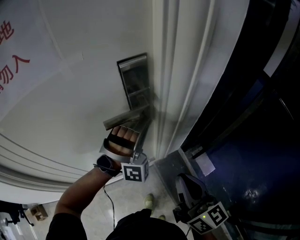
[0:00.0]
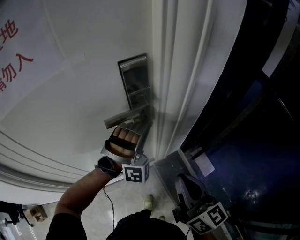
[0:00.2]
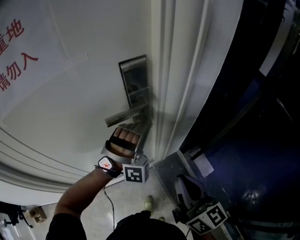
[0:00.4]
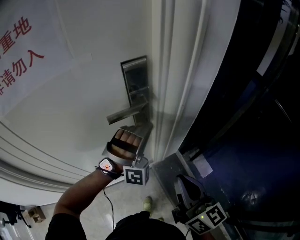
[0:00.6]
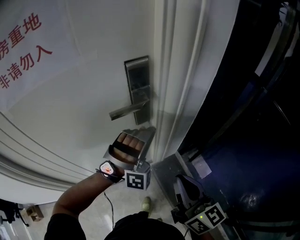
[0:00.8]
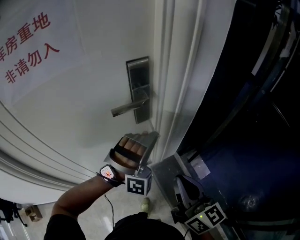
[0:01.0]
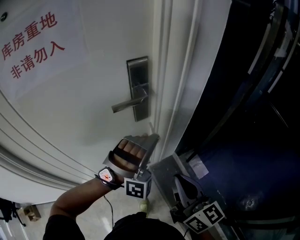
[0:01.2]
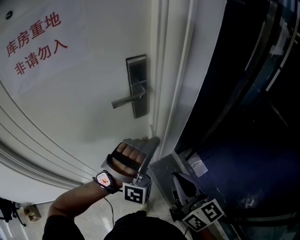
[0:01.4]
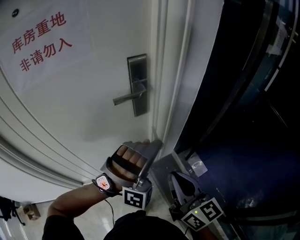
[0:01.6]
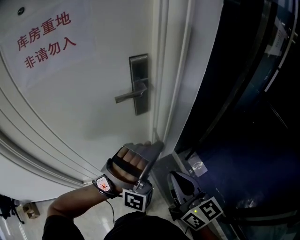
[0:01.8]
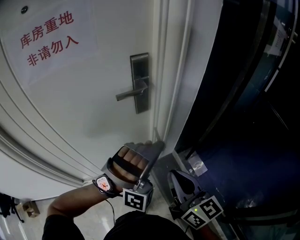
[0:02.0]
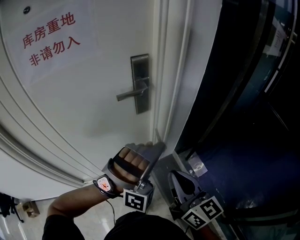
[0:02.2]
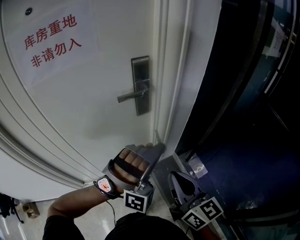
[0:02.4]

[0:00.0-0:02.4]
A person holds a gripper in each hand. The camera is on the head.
0:00.0 to 0:01.2: The left gripper shifts roughly 15 cm backward, while the right gripper moves backward, some 10 cm.
0:01.2 to 0:02.4: The right gripper moves backward, roughly 5 cm. Meanwhile the left gripper heads backward, covering approximately 10 cm.

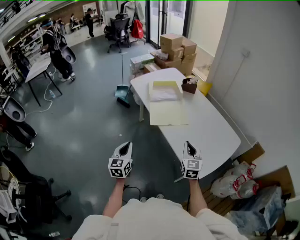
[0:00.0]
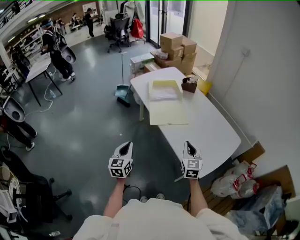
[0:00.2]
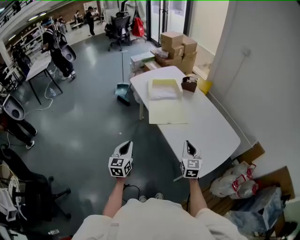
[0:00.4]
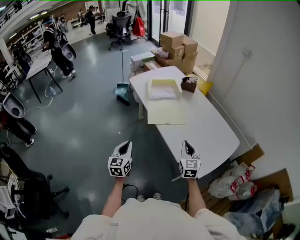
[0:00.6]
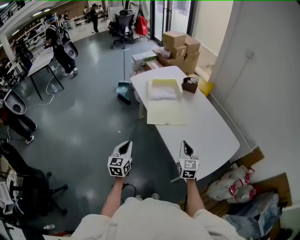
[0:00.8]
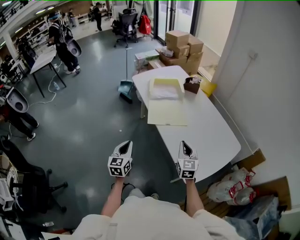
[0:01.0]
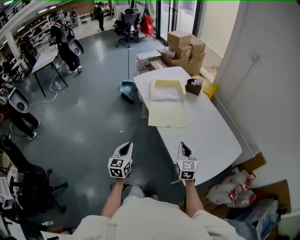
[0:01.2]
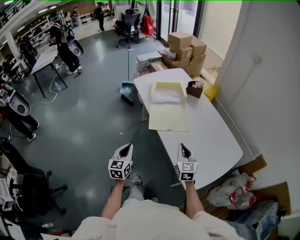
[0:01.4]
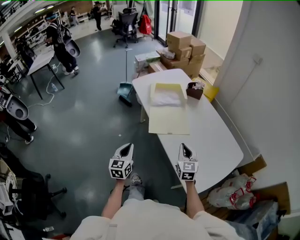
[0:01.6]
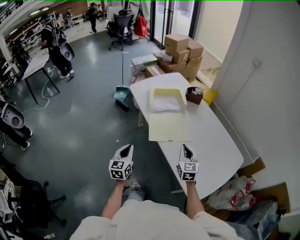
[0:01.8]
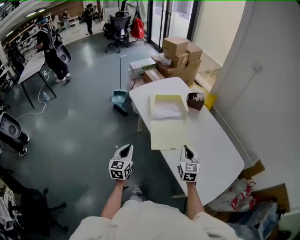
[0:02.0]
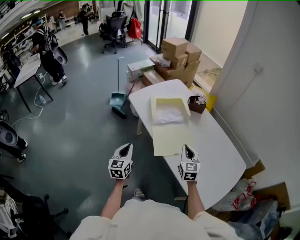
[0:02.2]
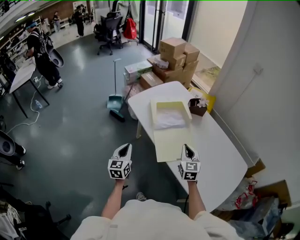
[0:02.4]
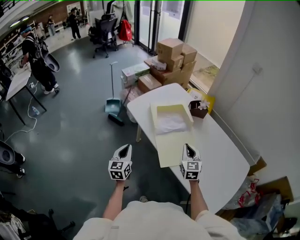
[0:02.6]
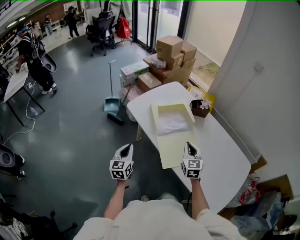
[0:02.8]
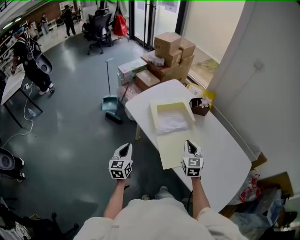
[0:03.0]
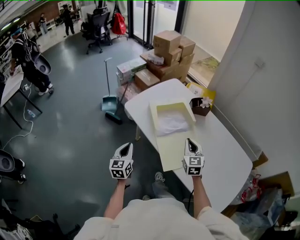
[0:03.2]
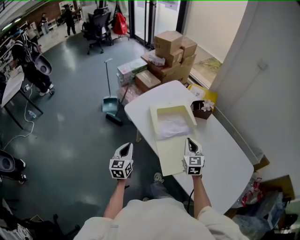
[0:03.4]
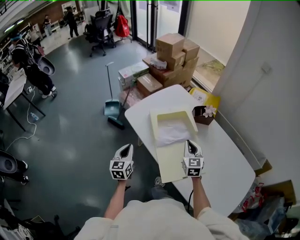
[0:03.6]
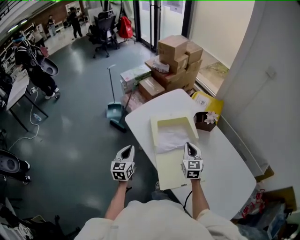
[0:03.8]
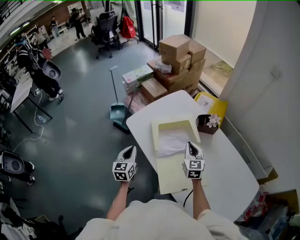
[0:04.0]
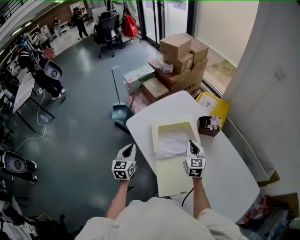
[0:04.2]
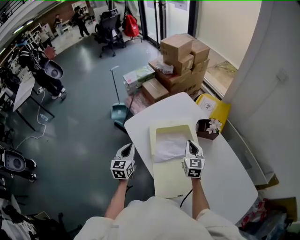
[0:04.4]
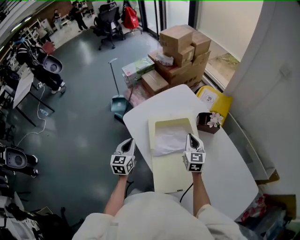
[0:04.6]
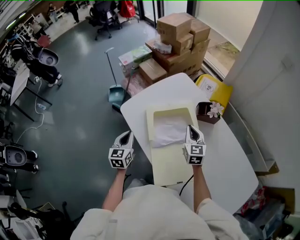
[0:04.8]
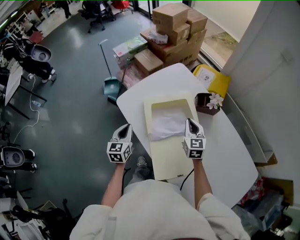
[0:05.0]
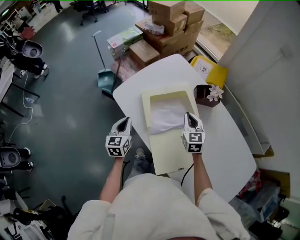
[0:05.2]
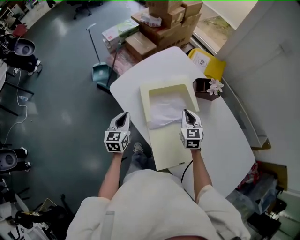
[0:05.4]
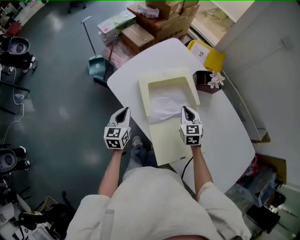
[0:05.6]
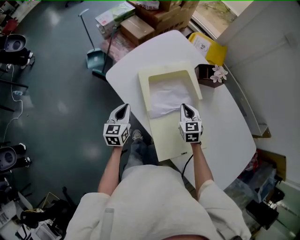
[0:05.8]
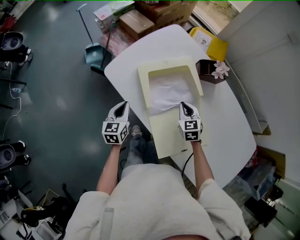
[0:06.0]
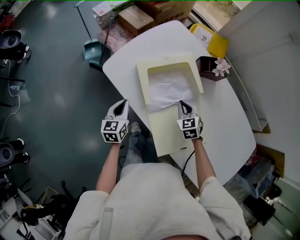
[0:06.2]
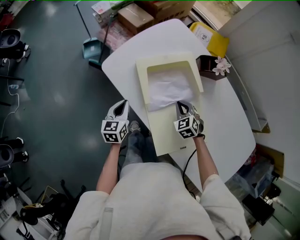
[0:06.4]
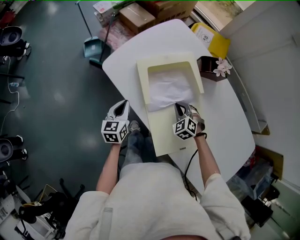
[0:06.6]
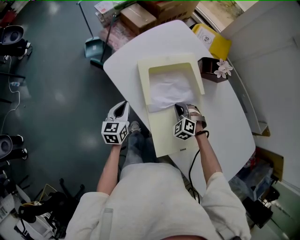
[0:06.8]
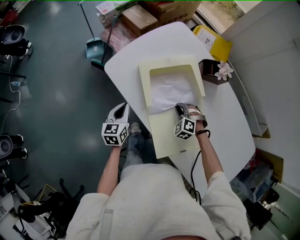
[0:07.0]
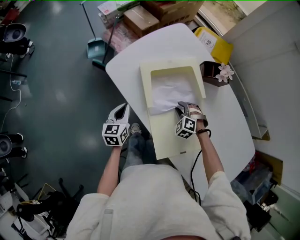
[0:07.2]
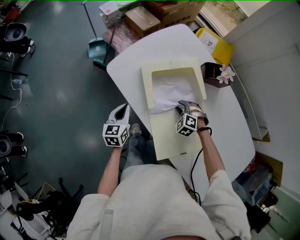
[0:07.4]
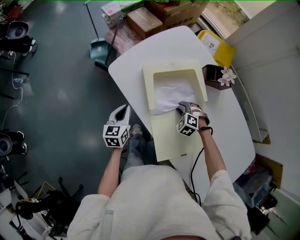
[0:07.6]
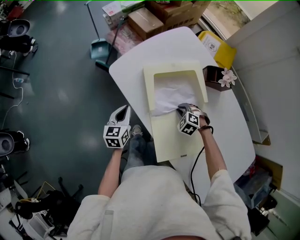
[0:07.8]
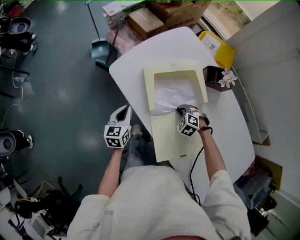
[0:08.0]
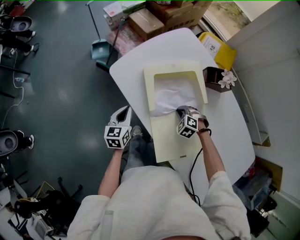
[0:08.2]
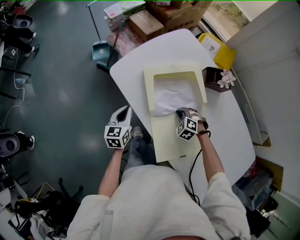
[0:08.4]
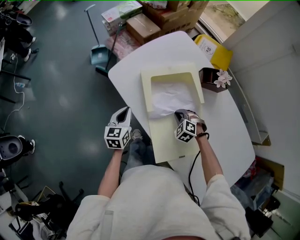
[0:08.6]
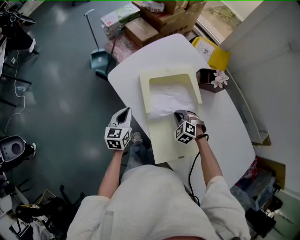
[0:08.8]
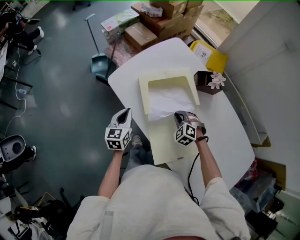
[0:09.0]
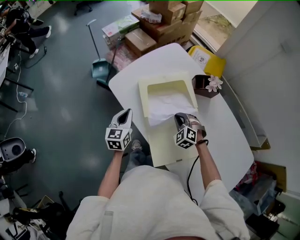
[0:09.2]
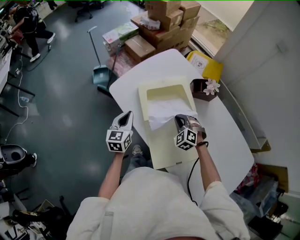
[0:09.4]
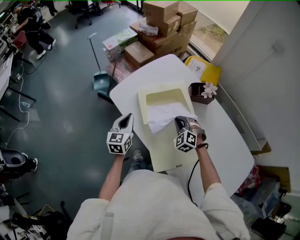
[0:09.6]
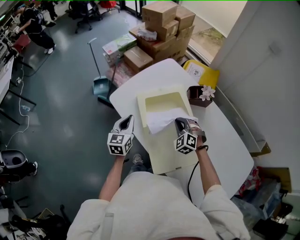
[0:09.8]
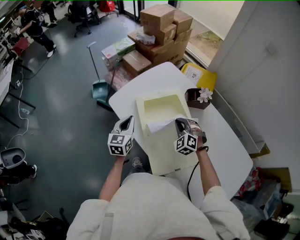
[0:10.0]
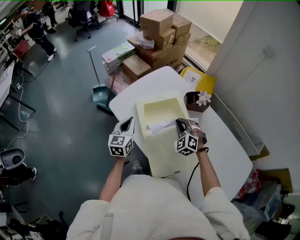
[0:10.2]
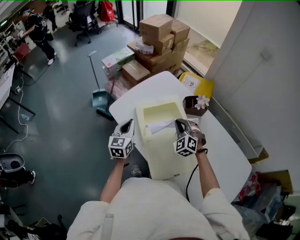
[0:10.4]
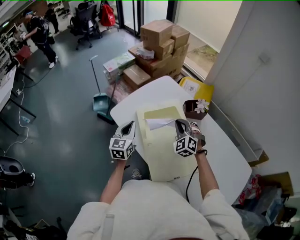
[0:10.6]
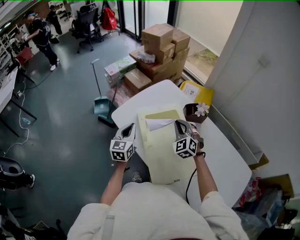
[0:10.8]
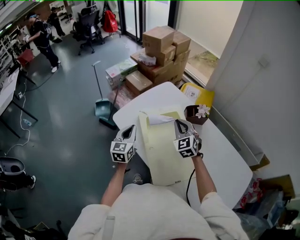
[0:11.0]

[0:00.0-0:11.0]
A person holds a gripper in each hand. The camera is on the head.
0:00.0 to 0:01.6: The grippers both shift forward by roughly 10 cm.
0:01.6 to 0:03.2: Both grippers move forward and to the left, roughly 30 cm.
0:03.2 to 0:04.8: Both grippers travel together forward, some 20 cm.
0:04.8 to 0:06.2: The grippers both shift downward by approximately 10 cm. The right gripper rotates about 30 degrees.
0:06.2 to 0:07.8: The right gripper is displaced downward by about 10 cm, and swivels roughly 50 degrees.
0:07.8 to 0:09.4: Both grippers travel together upward, about 10 cm. The right gripper swivels roughly 30 degrees.
0:09.4 to 0:11.0: The left gripper travels upward by some 5 cm. Meanwhile the right gripper is displaced upward by approximately 15 cm, and swivels approximately 30 degrees.

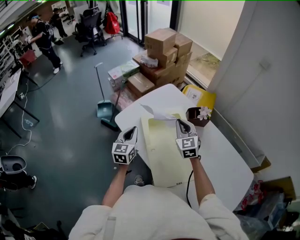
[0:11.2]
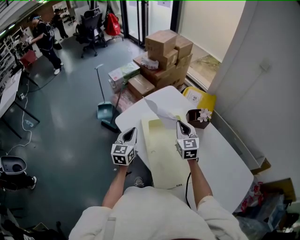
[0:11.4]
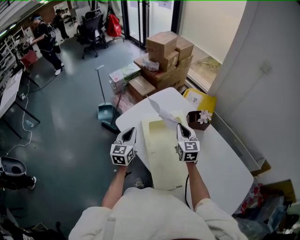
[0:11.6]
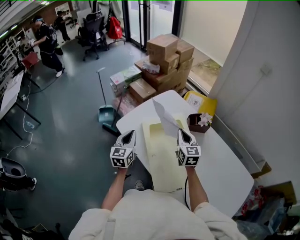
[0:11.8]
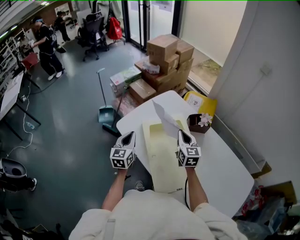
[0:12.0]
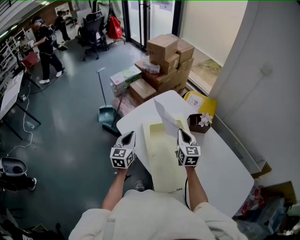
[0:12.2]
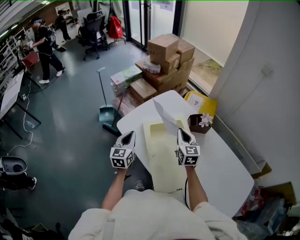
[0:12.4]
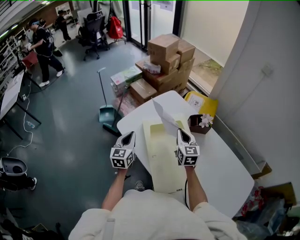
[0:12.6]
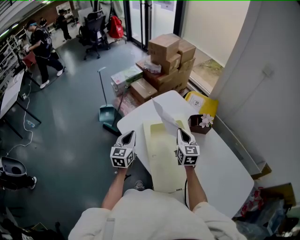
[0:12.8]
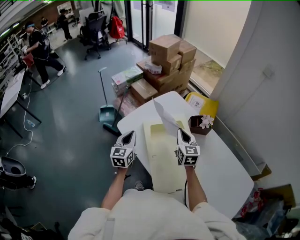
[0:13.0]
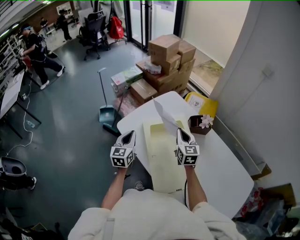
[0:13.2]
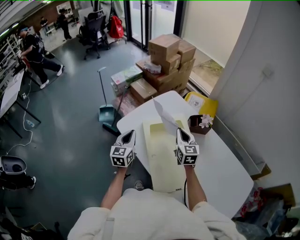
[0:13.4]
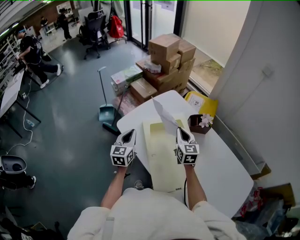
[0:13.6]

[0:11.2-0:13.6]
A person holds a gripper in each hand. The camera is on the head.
0:12.4 to 0:13.6: Both grippers stay put.

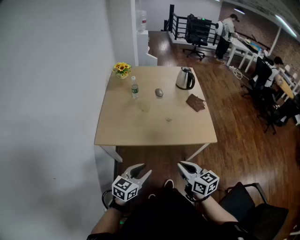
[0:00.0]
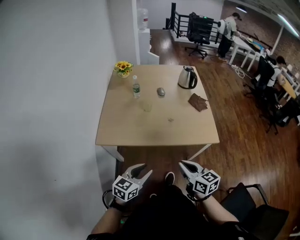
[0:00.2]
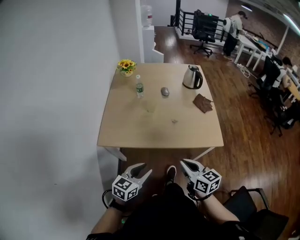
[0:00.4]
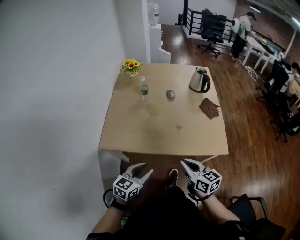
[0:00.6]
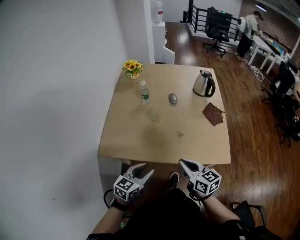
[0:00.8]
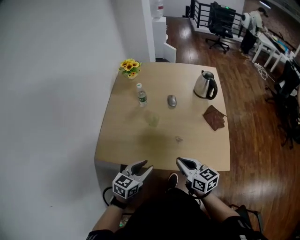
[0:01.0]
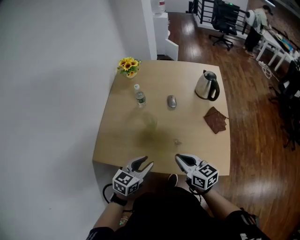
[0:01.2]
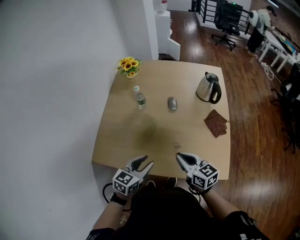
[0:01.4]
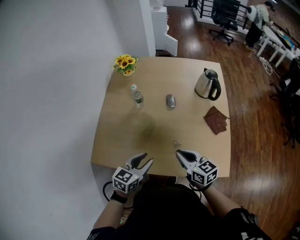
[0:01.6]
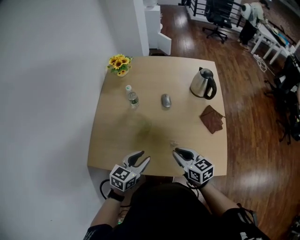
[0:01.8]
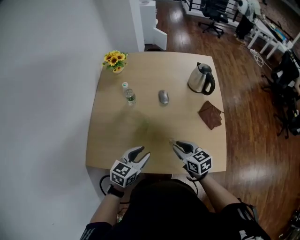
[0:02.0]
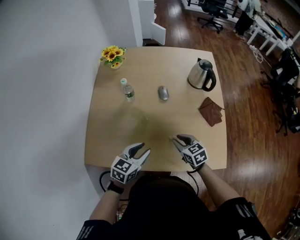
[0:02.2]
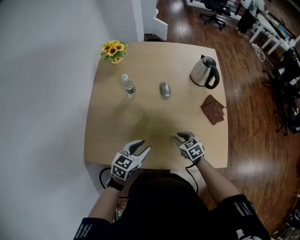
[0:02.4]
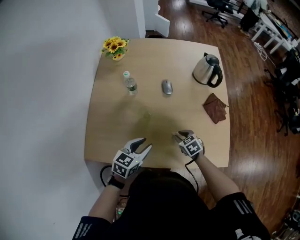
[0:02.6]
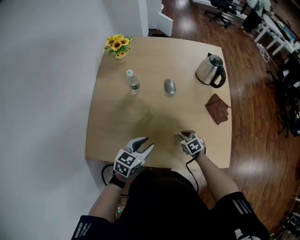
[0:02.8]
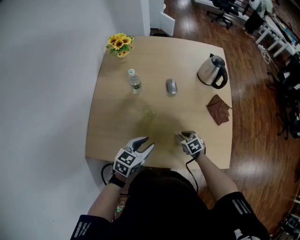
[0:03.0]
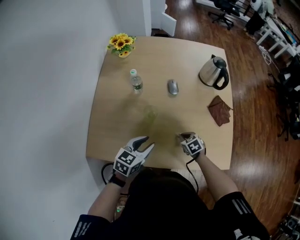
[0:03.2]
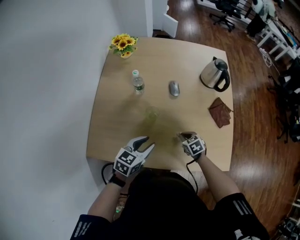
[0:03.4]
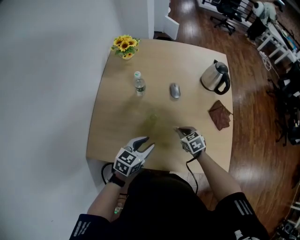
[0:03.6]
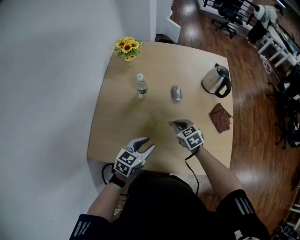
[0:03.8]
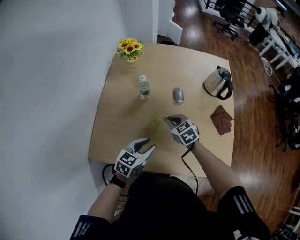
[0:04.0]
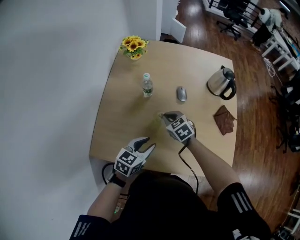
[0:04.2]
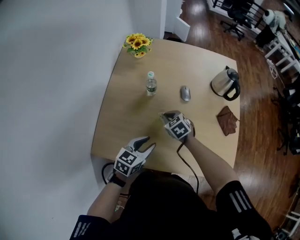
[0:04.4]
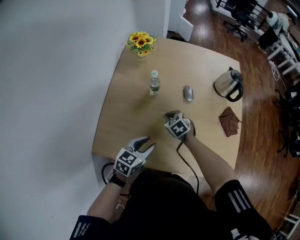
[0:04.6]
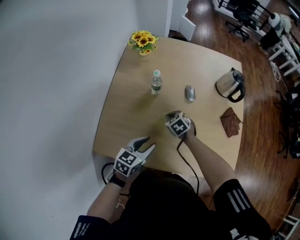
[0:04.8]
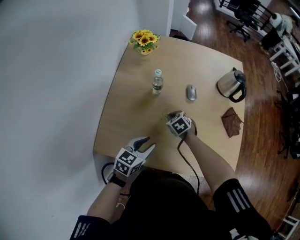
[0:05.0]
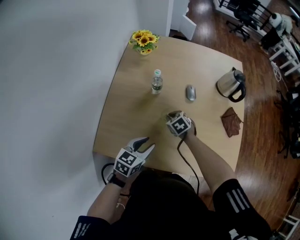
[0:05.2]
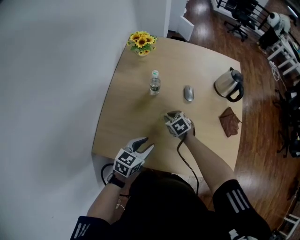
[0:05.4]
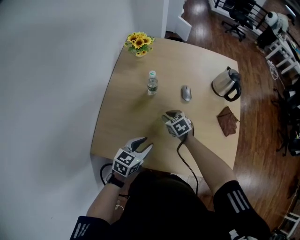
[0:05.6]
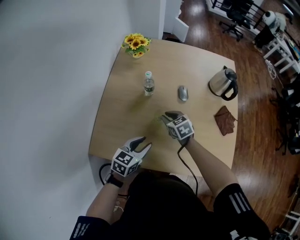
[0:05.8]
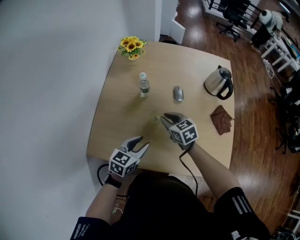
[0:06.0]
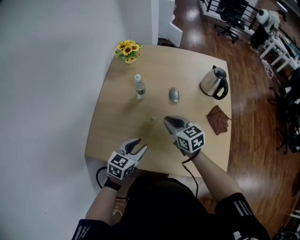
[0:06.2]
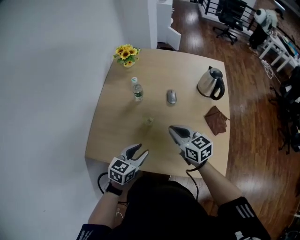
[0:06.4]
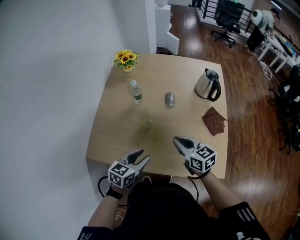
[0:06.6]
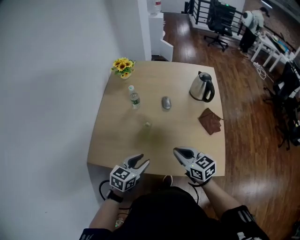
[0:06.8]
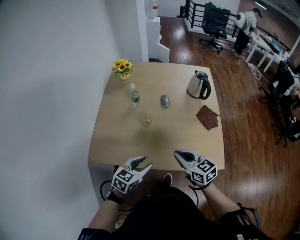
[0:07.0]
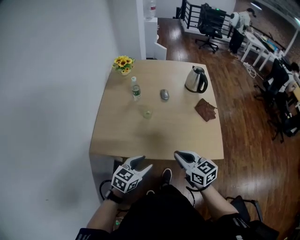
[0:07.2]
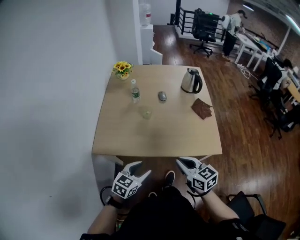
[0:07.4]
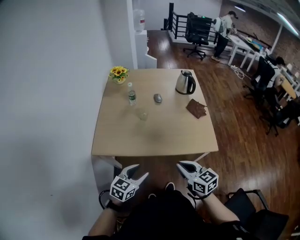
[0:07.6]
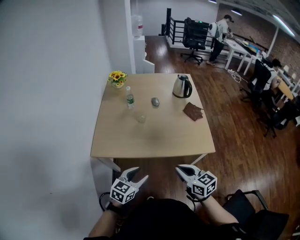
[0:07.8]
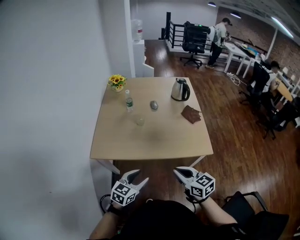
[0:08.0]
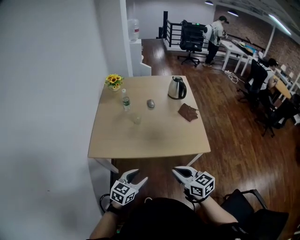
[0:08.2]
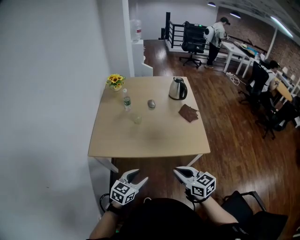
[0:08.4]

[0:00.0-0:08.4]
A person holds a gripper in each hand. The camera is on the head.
0:00.0 to 0:01.4: Both grippers travel together forward, approximately 30 cm.
0:01.4 to 0:02.8: The right gripper shifts roughly 25 cm downward, points its fingers about 40 degrees further downward, and opens up. The left gripper moves forward and downward, about 10 cm.
0:02.8 to 0:04.2: The left gripper shifts by roughly 5 cm, while the right gripper heads to the left, upward and forward, covering roughly 25 cm, swivels some 20 degrees, and closes its fingers.
0:05.6 to 0:07.0: The right gripper travels backward, upward and to the right by about 35 cm, and changes its angle by about 30 degrees; the left gripper shifts some 15 cm backward and to the right.
0:07.0 to 0:08.4: The two grippers go roughly 25 cm backward.
